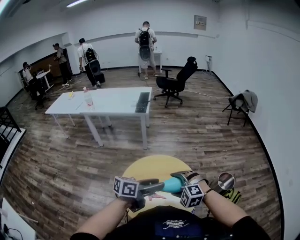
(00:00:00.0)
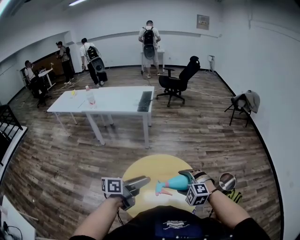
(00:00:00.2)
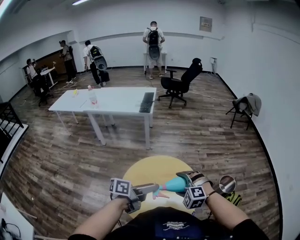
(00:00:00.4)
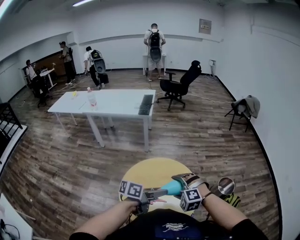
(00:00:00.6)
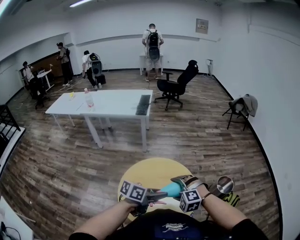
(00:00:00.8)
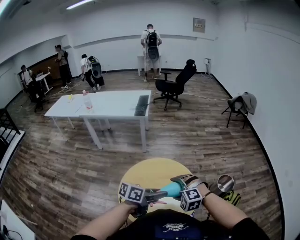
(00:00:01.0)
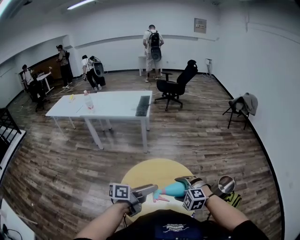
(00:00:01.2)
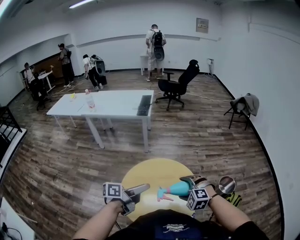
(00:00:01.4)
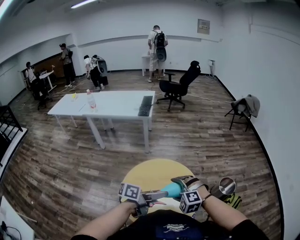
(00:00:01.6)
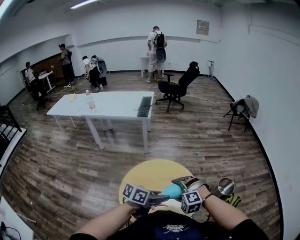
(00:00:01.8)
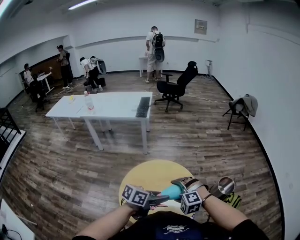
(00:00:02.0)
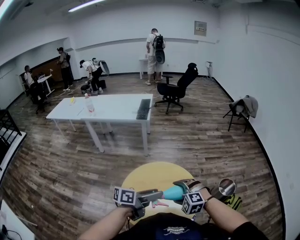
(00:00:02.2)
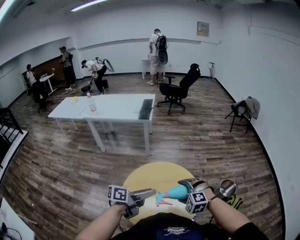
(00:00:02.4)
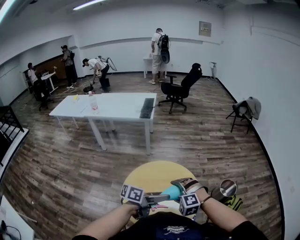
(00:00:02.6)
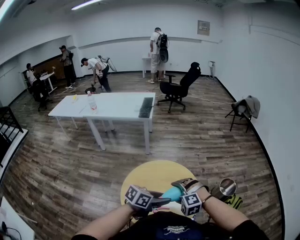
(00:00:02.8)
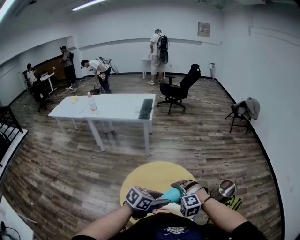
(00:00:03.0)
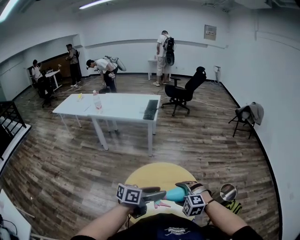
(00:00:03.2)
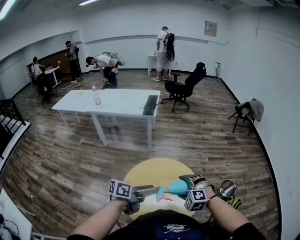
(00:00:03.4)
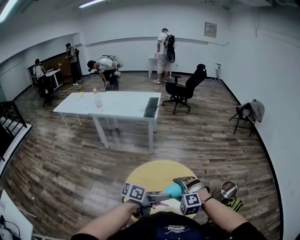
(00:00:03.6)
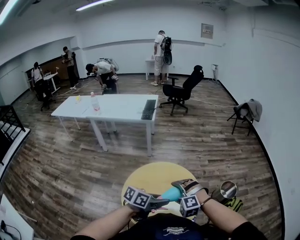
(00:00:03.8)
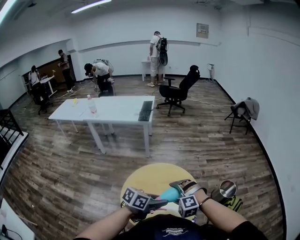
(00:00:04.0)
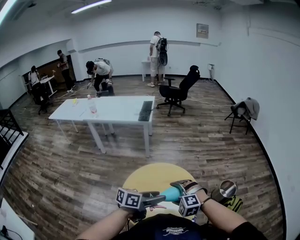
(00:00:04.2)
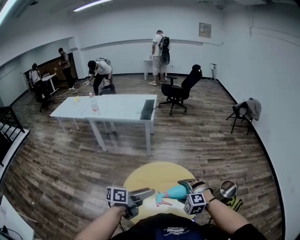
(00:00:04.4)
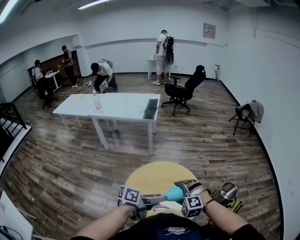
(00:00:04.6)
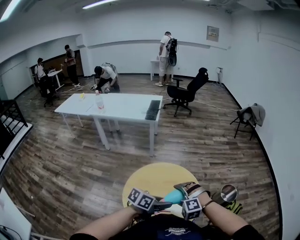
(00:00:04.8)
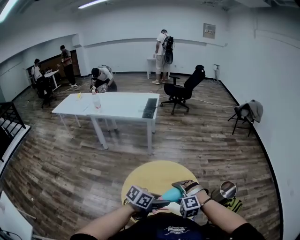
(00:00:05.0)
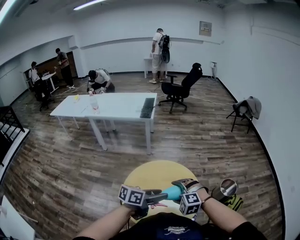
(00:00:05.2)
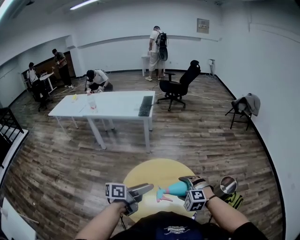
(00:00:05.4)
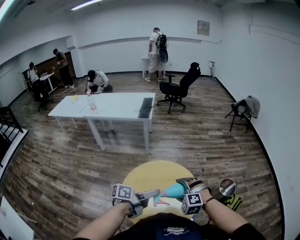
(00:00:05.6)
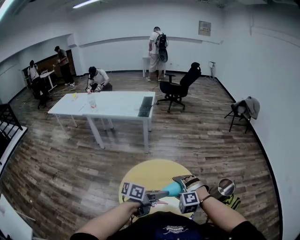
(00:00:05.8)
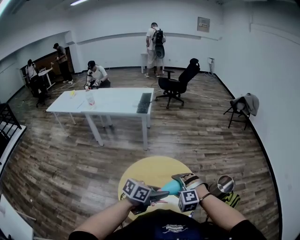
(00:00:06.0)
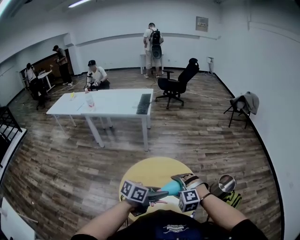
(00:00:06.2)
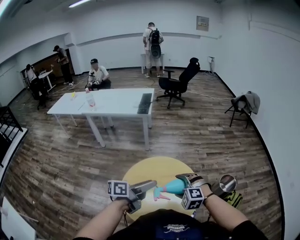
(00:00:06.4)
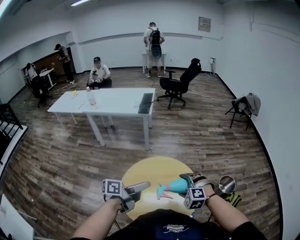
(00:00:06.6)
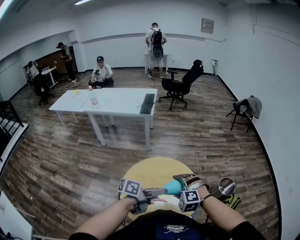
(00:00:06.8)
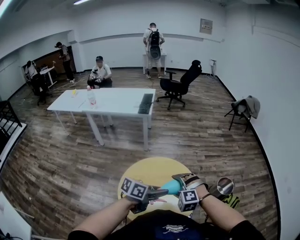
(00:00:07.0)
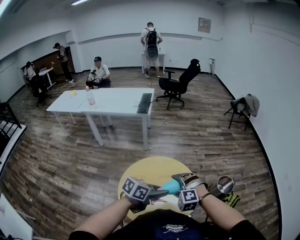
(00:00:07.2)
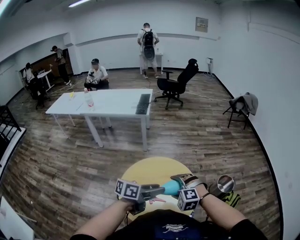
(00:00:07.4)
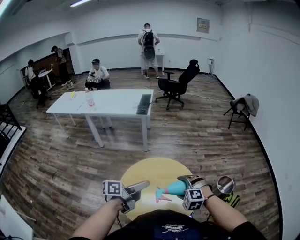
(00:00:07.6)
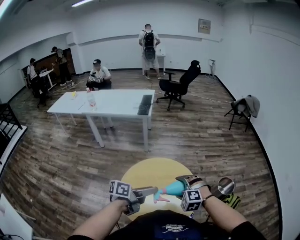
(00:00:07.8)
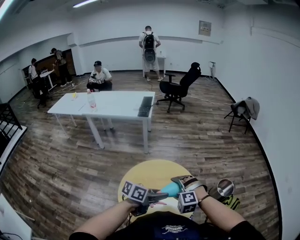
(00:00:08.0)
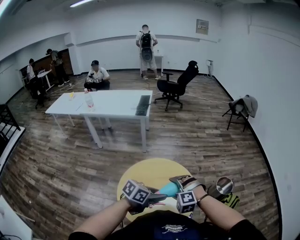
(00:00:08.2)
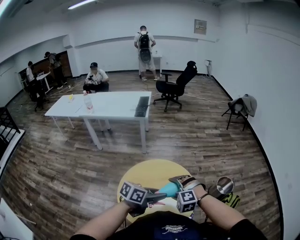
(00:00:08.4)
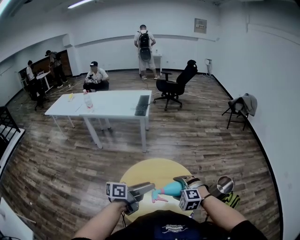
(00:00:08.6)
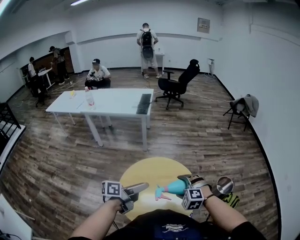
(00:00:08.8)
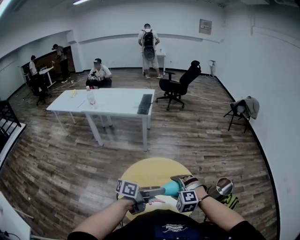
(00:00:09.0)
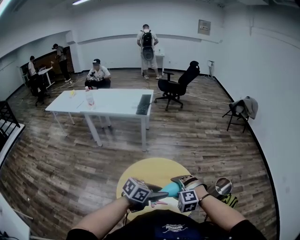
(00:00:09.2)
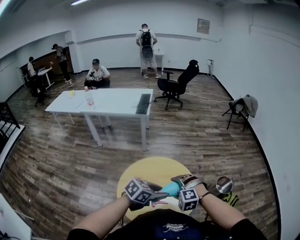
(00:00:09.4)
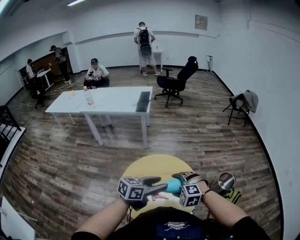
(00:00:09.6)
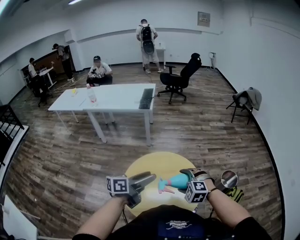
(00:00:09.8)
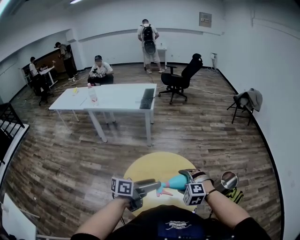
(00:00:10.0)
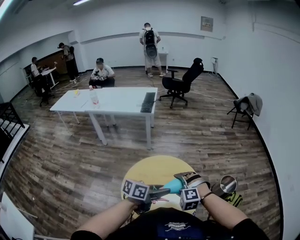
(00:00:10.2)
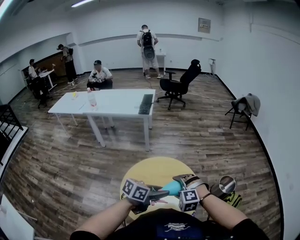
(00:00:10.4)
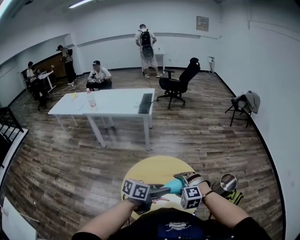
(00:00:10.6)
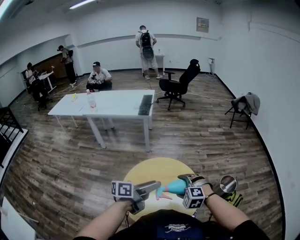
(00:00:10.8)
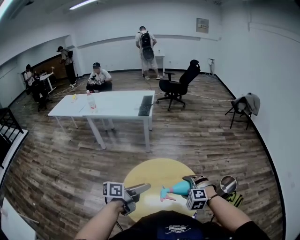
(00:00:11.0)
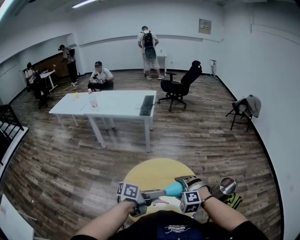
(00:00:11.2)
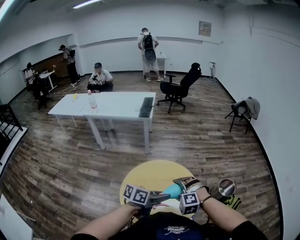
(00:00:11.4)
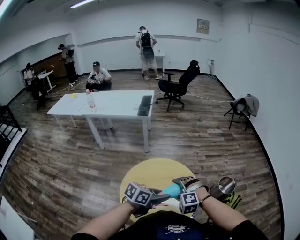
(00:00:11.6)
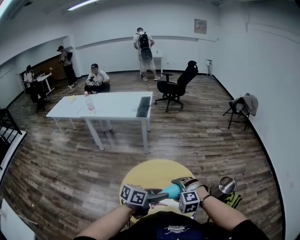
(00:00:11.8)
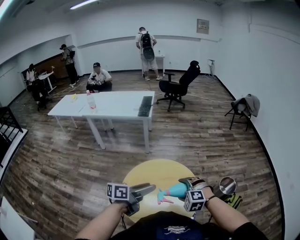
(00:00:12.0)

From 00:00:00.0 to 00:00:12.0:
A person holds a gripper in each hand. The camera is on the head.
From 00:00:00.0 to 00:00:01.6: The left gripper goes left and right, roughly 10 cm each way, reversing 3 times.
From 00:00:01.6 to 00:00:03.0: The left gripper moves roughly 5 cm to the left and comes back, and changes its angle by roughly 40 degrees.
From 00:00:03.0 to 00:00:04.4: The left gripper moves left and right over approximately 10 cm, changing direction 2 times, and swivels about 40 degrees.
From 00:00:04.4 to 00:00:06.0: The left gripper moves left and right over roughly 10 cm, changing direction 2 times, and rotates approximately 30 degrees.
From 00:00:06.0 to 00:00:07.6: The left gripper swings left and right, roughly 10 cm each way, with 2 reversals, and rotates approximately 40 degrees.
From 00:00:07.6 to 00:00:09.0: The left gripper moves left and right over some 10 cm, changing direction 2 times.
From 00:00:09.0 to 00:00:10.4: The left gripper goes to the left and returns, roughly 5 cm each way, and swivels approximately 20 degrees.
From 00:00:10.4 to 00:00:12.0: The left gripper moves left and right over roughly 10 cm, changing direction 2 times, and rotates roughly 30 degrees.

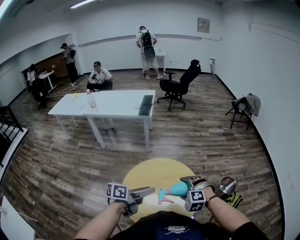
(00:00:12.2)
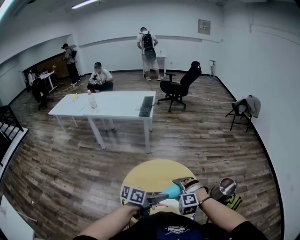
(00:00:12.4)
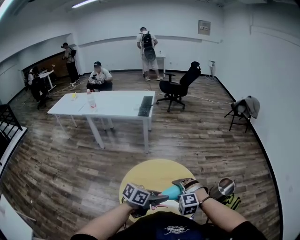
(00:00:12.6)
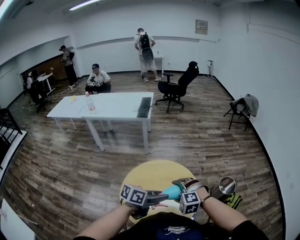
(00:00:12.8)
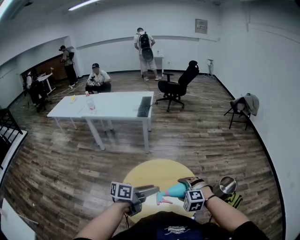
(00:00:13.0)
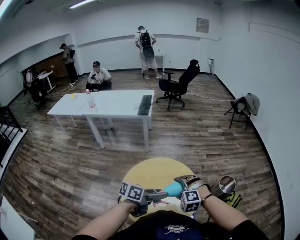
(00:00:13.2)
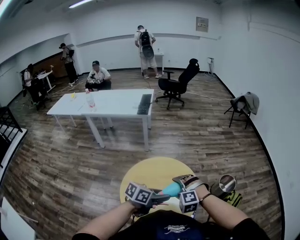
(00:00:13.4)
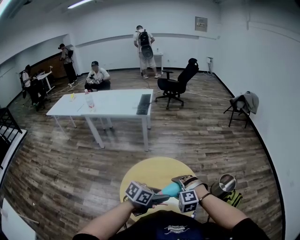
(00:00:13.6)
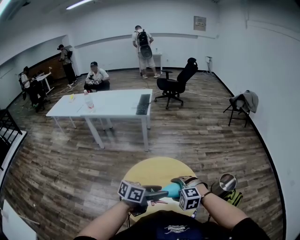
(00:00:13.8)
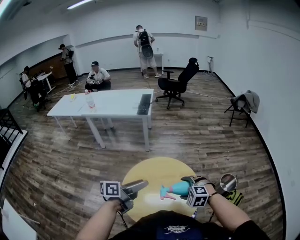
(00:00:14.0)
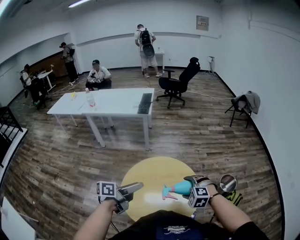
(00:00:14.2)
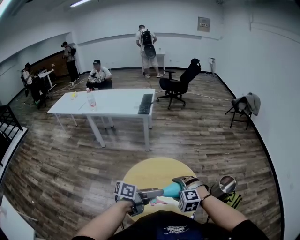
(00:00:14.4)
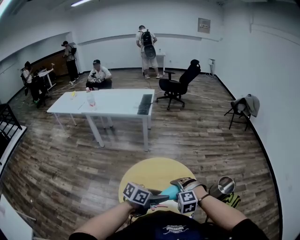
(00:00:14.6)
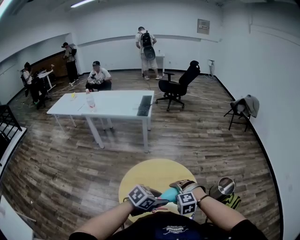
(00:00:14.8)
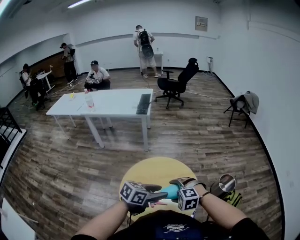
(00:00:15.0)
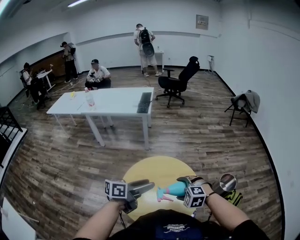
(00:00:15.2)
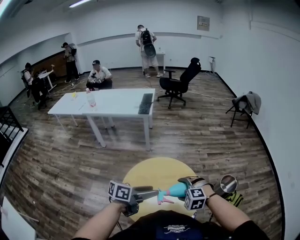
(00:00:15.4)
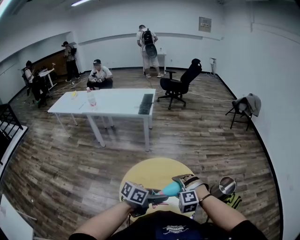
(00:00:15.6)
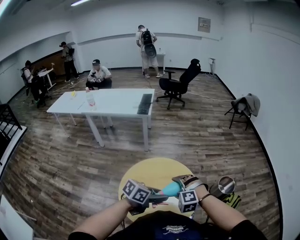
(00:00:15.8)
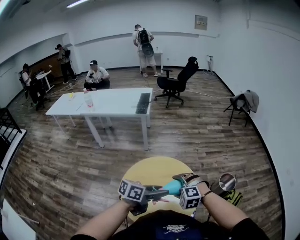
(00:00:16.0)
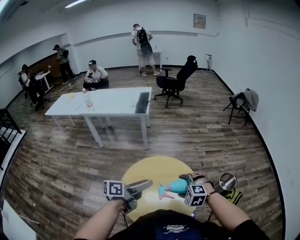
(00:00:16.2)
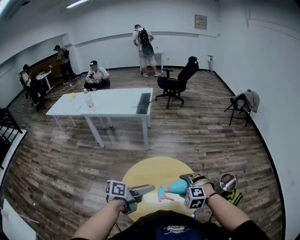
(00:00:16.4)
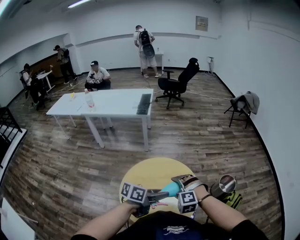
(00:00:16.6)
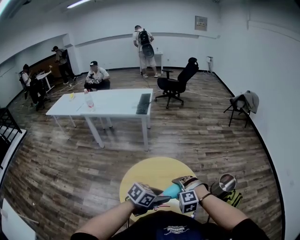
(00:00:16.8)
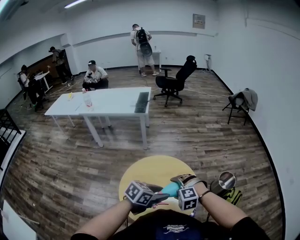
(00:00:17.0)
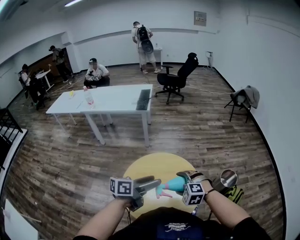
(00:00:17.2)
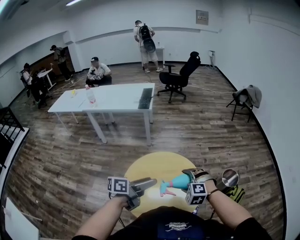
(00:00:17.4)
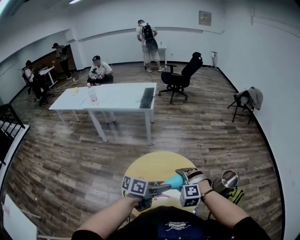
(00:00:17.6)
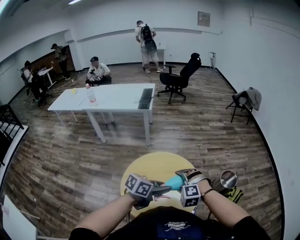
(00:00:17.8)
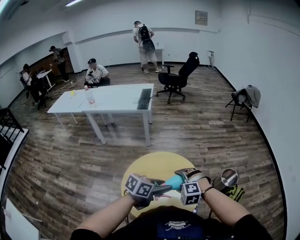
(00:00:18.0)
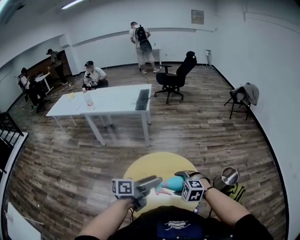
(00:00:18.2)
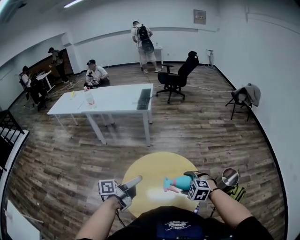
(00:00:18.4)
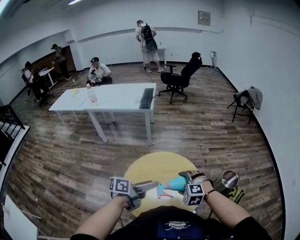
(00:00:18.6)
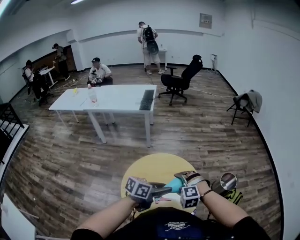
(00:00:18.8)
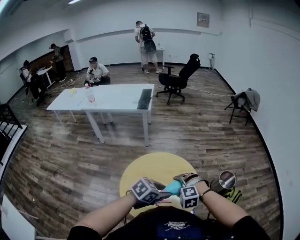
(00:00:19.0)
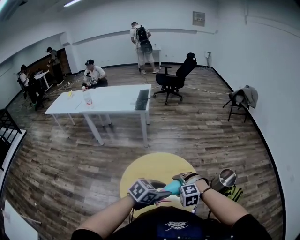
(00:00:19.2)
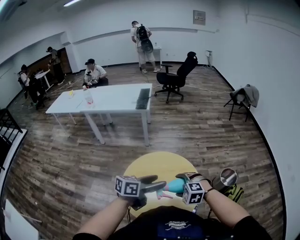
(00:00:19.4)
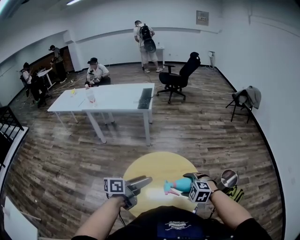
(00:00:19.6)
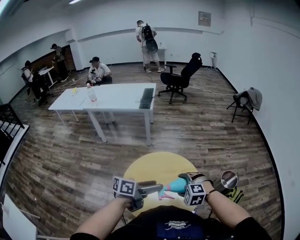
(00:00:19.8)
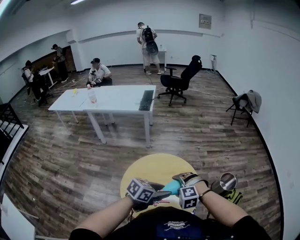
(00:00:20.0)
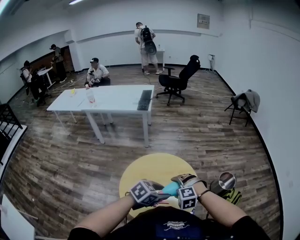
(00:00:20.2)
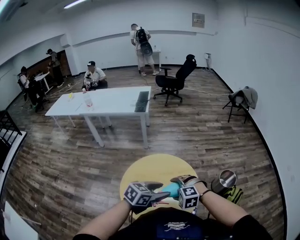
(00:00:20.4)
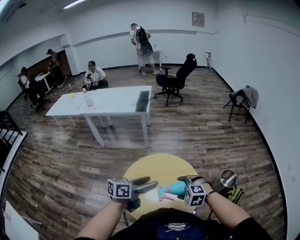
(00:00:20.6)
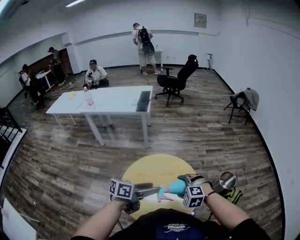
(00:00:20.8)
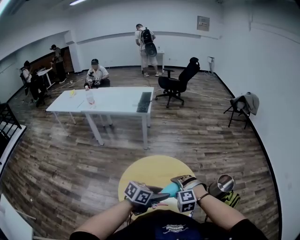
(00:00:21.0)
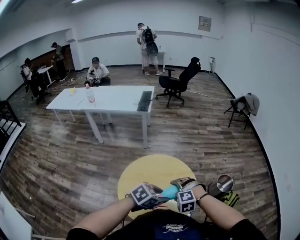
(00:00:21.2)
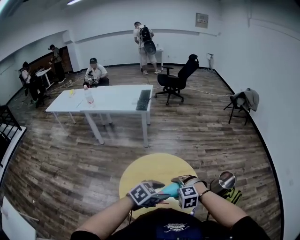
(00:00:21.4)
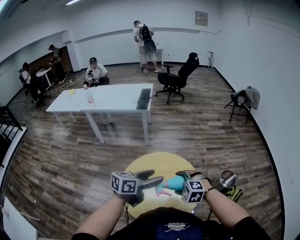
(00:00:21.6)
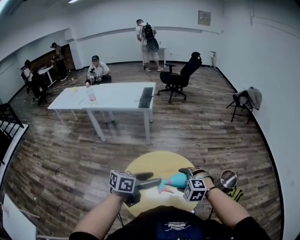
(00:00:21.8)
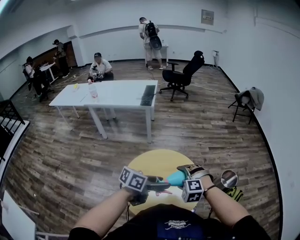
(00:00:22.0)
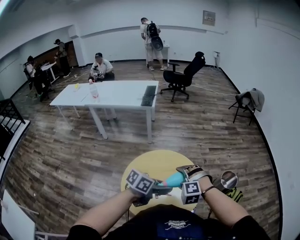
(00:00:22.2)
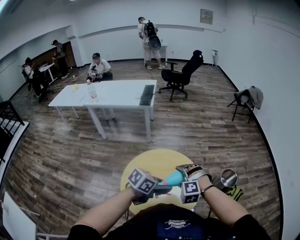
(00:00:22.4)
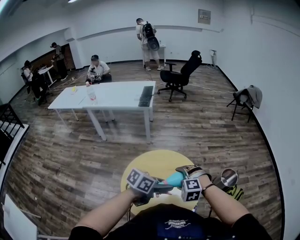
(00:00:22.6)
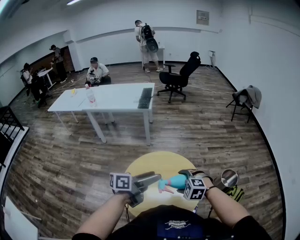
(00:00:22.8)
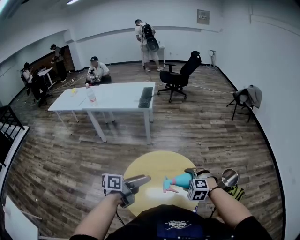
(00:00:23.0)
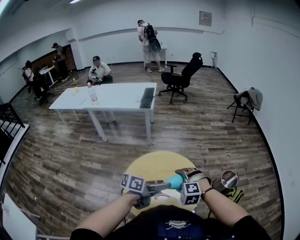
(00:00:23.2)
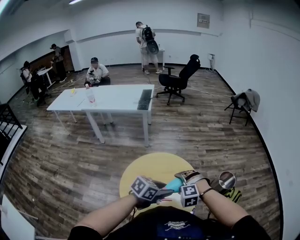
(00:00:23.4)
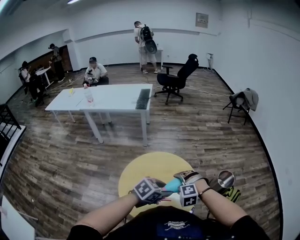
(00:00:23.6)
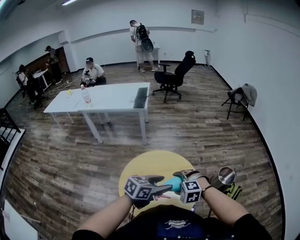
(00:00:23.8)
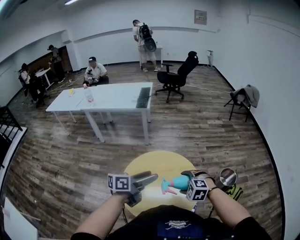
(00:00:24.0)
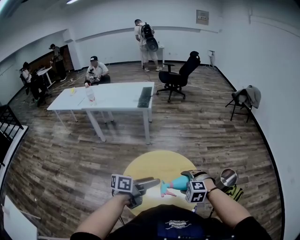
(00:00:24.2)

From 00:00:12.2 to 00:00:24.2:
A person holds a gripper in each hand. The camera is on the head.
From 00:00:12.2 to 00:00:13.8: The left gripper goes left and right, about 10 cm each way, reversing 2 times, and swivels about 20 degrees.
From 00:00:13.8 to 00:00:15.2: The left gripper goes left and right, about 15 cm each way, reversing 2 times.
From 00:00:15.2 to 00:00:16.6: The left gripper moves left and right over roughly 10 cm, changing direction 2 times.
From 00:00:16.6 to 00:00:18.2: The left gripper goes left and right, roughly 10 cm each way, reversing 2 times, and turns by some 20 degrees.
From 00:00:18.2 to 00:00:19.8: The left gripper goes left and right, some 15 cm each way, reversing 3 times.
From 00:00:19.8 to 00:00:21.2: The left gripper goes left and right, approximately 10 cm each way, reversing 2 times, angles its fingers downward, by approximately 30 degrees, and closes its fingers.
From 00:00:21.2 to 00:00:22.6: The right gripper shifts by roughly 5 cm, while the left gripper rotates about 30 degrees.
From 00:00:22.6 to 00:00:24.2: The left gripper swings left and right, roughly 15 cm each way, with 2 reversals, and rotates some 30 degrees.
